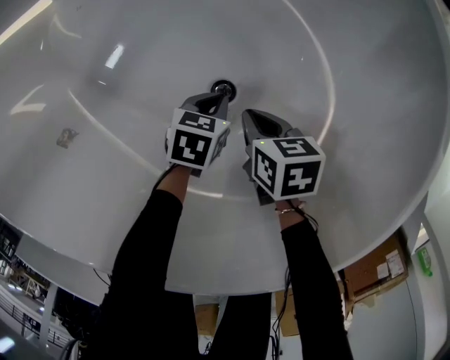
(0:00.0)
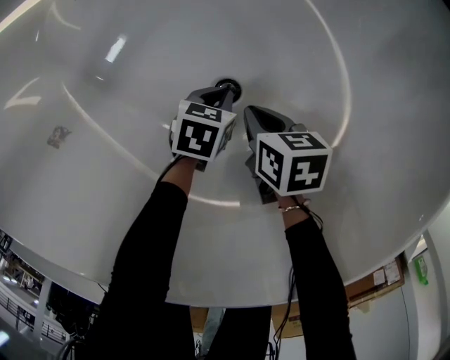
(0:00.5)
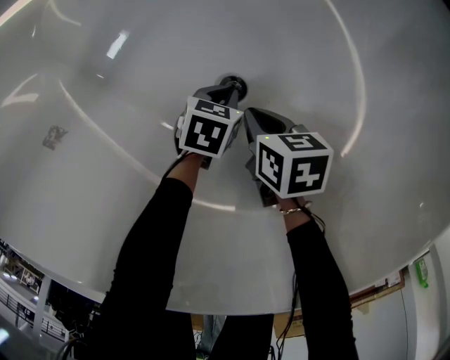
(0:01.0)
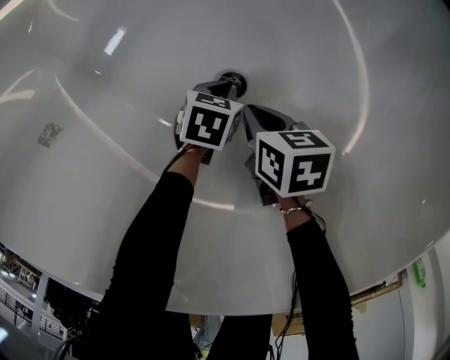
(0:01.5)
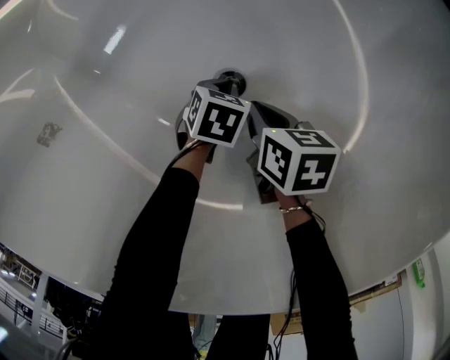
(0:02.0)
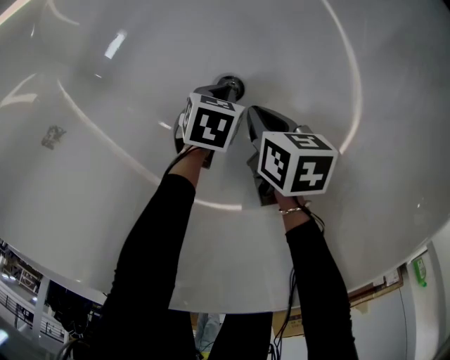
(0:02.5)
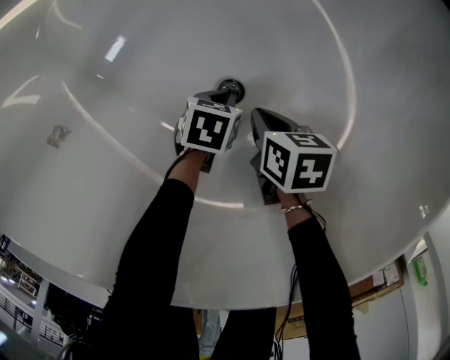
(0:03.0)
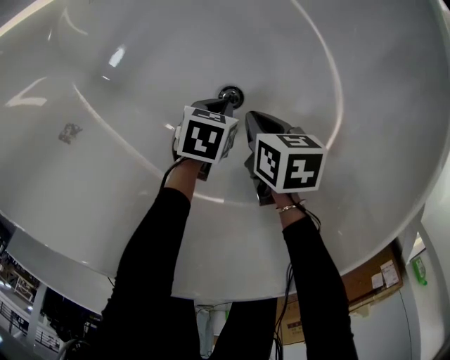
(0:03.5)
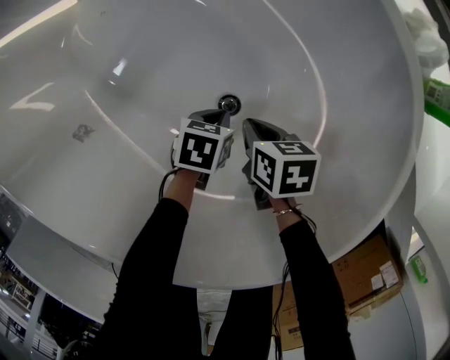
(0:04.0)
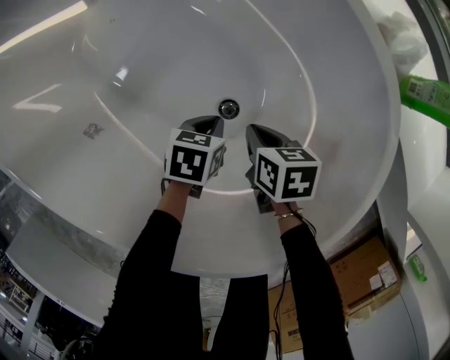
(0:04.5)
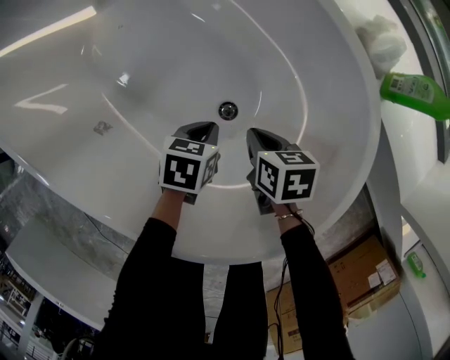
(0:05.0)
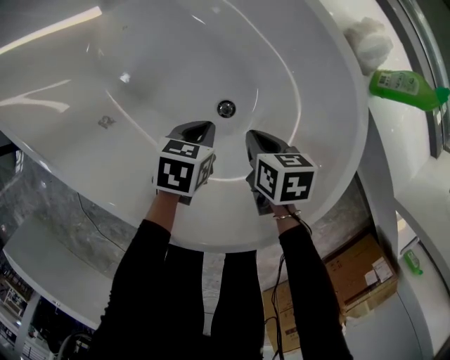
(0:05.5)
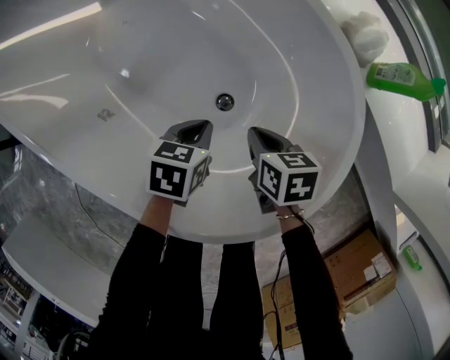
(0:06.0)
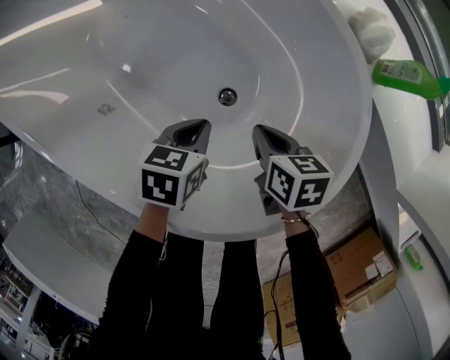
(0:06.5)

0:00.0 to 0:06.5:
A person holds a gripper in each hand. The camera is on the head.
0:00.0 to 0:02.0: The left gripper goes roughly 10 cm downward. The right gripper moves downward, about 5 cm.
0:02.0 to 0:04.5: The grippers both shift upward by roughly 15 cm.
0:04.5 to 0:06.5: Both grippers move upward, roughly 10 cm.

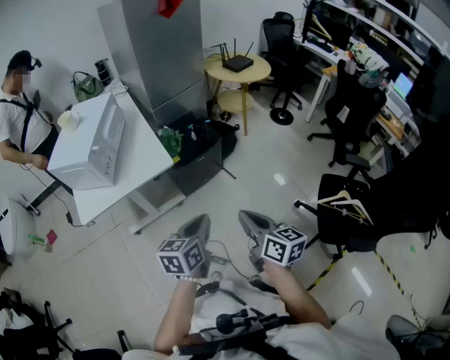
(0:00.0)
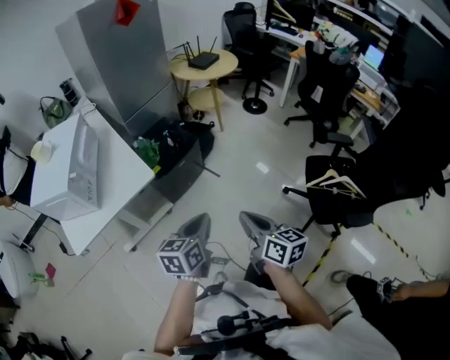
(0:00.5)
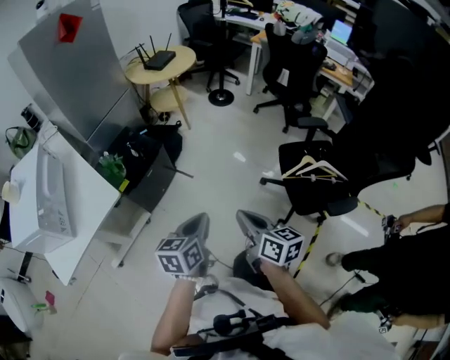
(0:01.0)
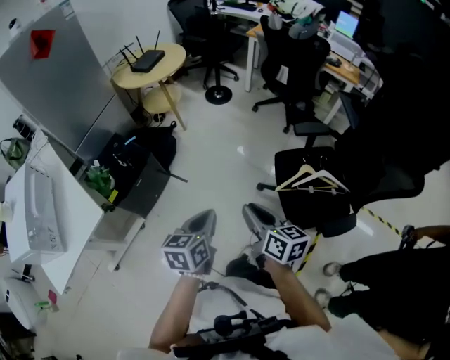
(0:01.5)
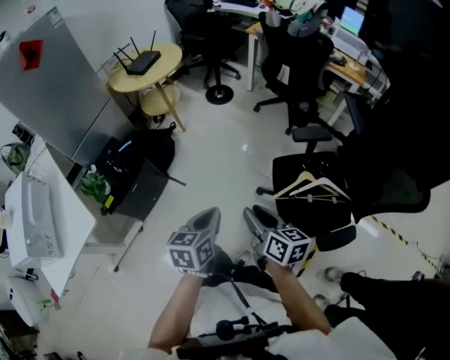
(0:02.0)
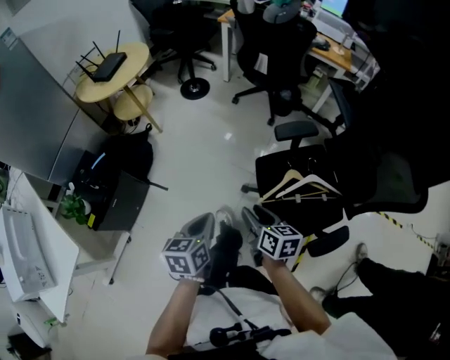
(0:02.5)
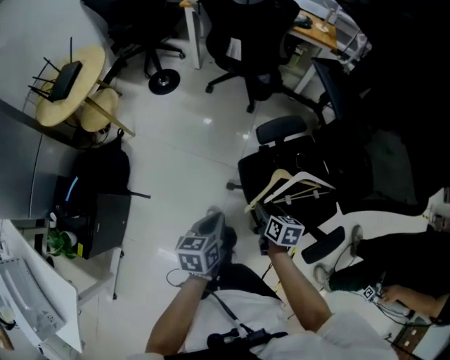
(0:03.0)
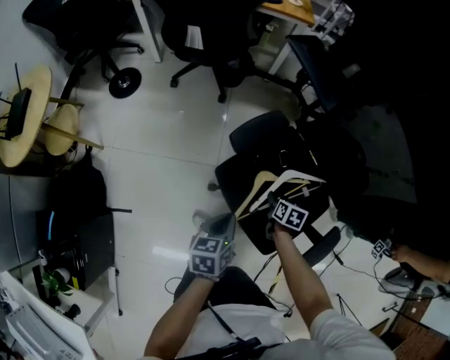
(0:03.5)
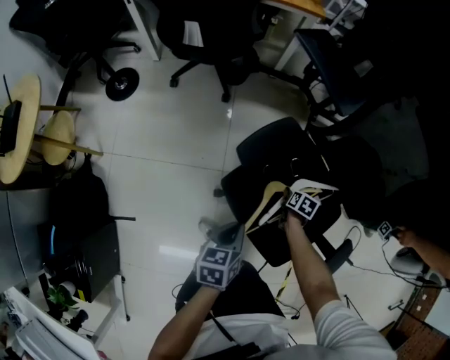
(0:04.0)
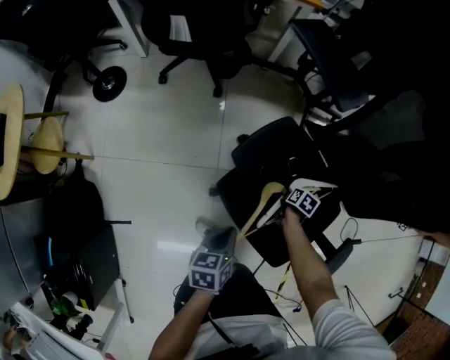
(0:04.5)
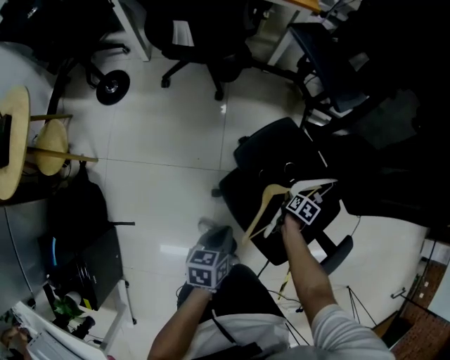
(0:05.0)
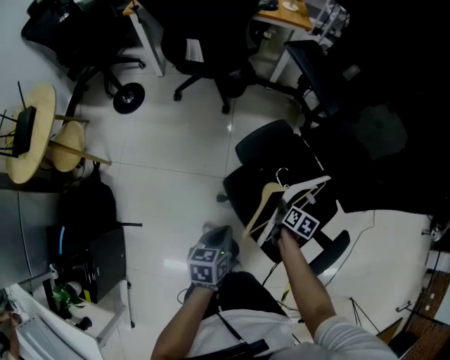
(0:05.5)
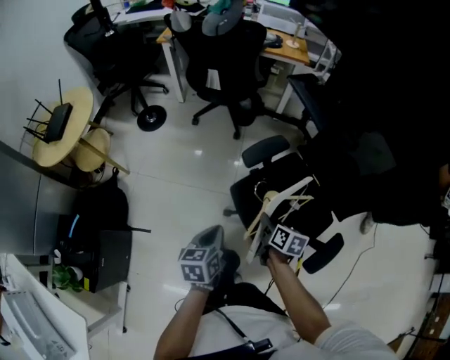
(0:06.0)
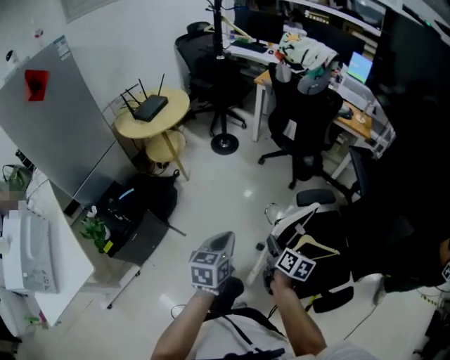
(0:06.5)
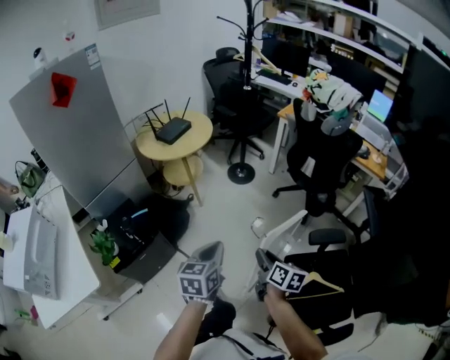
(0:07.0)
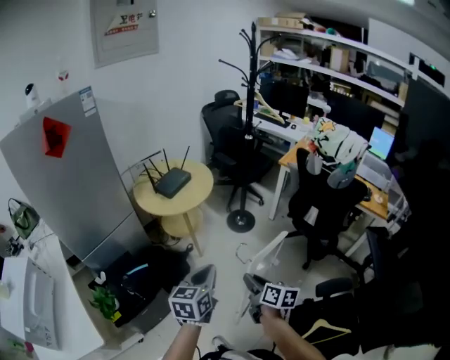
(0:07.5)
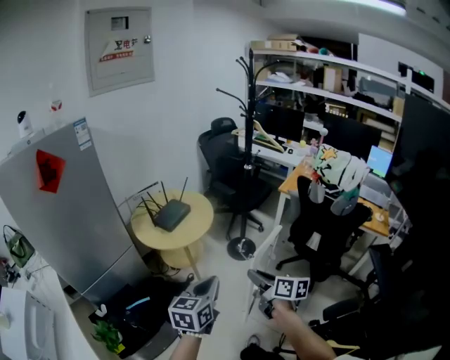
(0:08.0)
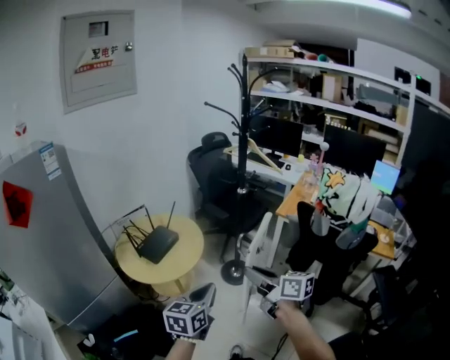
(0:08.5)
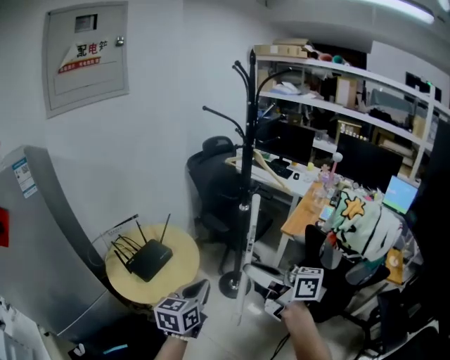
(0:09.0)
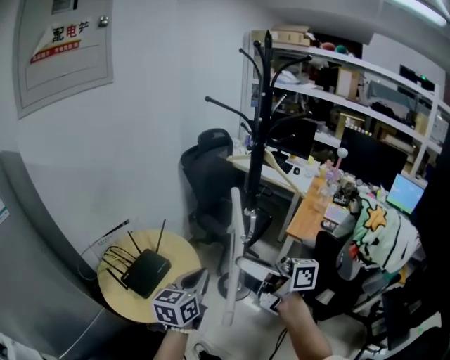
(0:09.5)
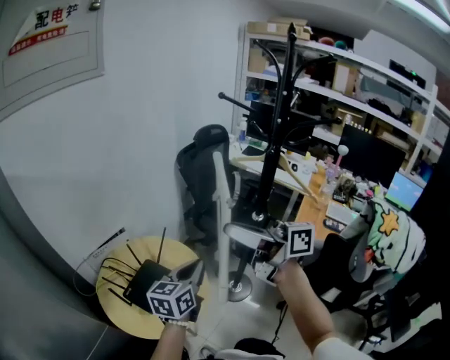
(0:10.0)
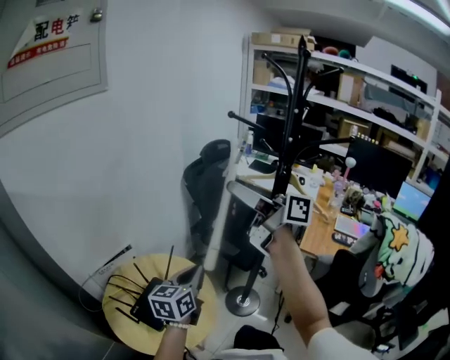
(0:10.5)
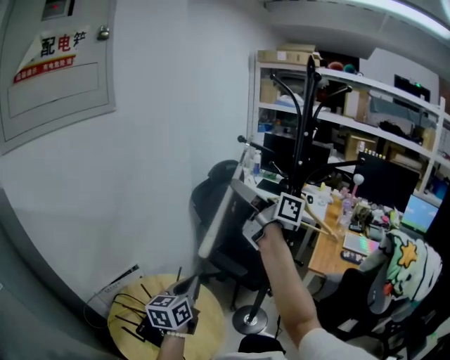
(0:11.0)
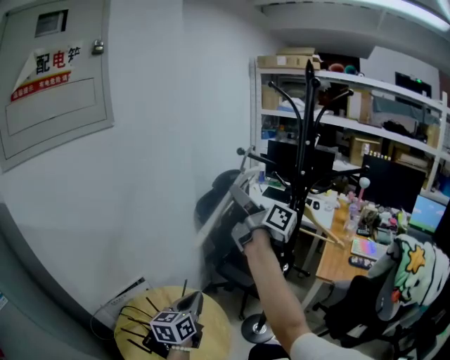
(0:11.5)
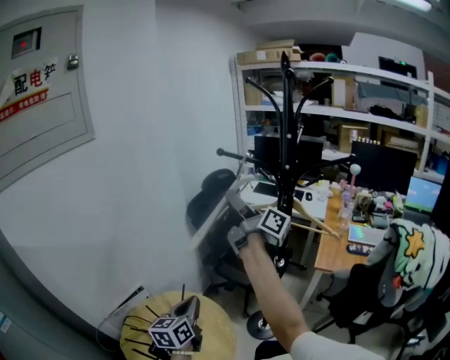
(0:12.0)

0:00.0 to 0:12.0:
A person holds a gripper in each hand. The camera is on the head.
0:00.0 to 0:02.0: Both grippers move to the right and forward, roughly 40 cm. The left gripper changes its angle by some 30 degrees; the right gripper rotates approximately 30 degrees, and opens its fingers.
0:02.0 to 0:04.0: The left gripper moves roughly 50 cm, and turns by roughly 40 degrees. Meanwhile the right gripper changes place by about 70 cm, and tips its fingers downward by roughly 50 degrees.
0:04.0 to 0:06.0: The right gripper moves upward, about 25 cm, turns by roughly 30 degrees, and closes its fingers. The left gripper ends up some 20 cm from where it was.
0:06.0 to 0:08.0: Both grippers are carried approximately 50 cm. The left gripper changes its angle by approximately 30 degrees; the right gripper turns by approximately 50 degrees.
0:08.0 to 0:10.0: The pair of grippers is taken forward, about 50 cm. The right gripper goes some 25 cm upward, and points its fingers roughly 30 degrees further upward.
0:10.0 to 0:12.0: The right gripper goes approximately 30 cm forward, and rotates approximately 40 degrees. The left gripper moves forward and to the left, approximately 15 cm.

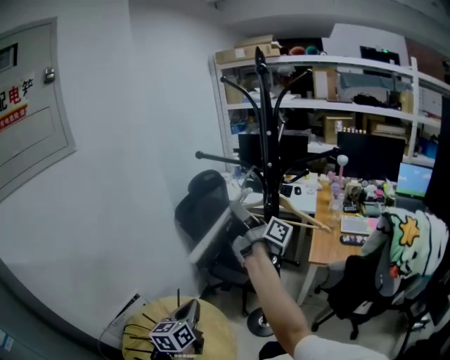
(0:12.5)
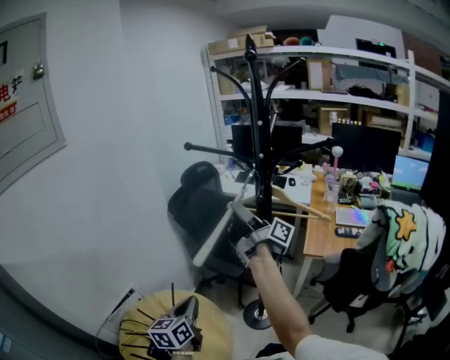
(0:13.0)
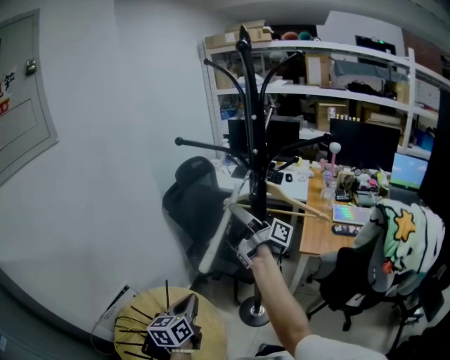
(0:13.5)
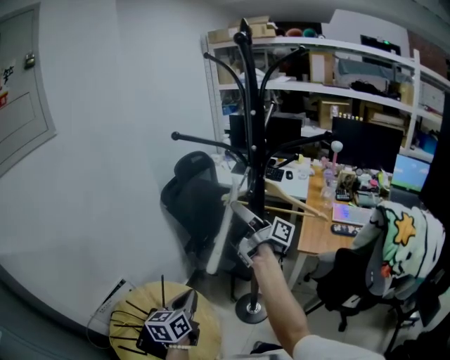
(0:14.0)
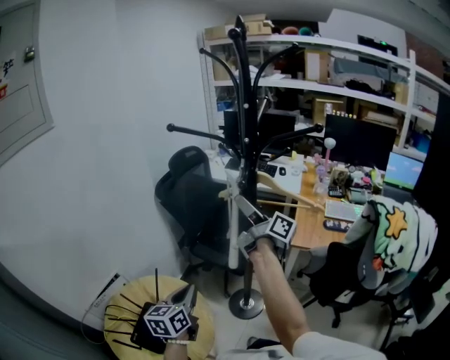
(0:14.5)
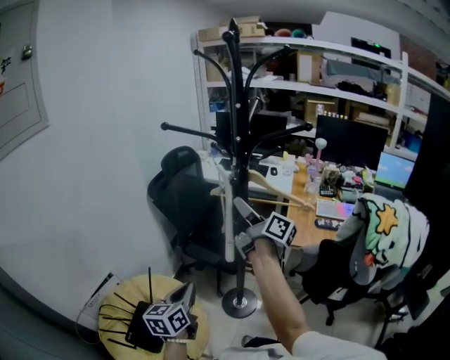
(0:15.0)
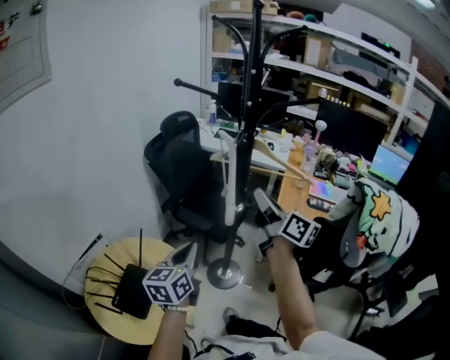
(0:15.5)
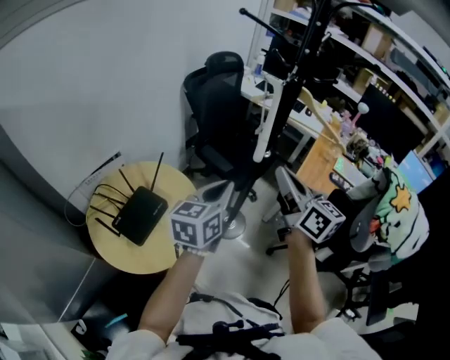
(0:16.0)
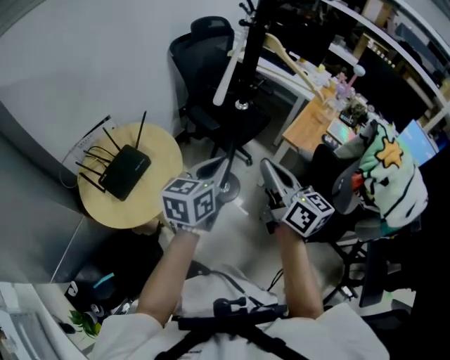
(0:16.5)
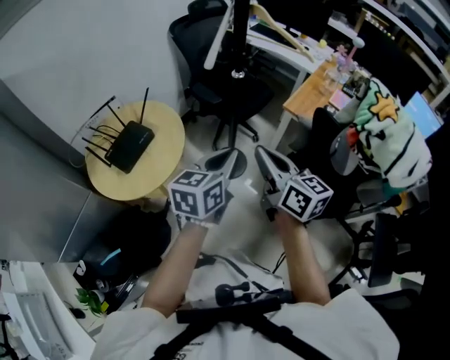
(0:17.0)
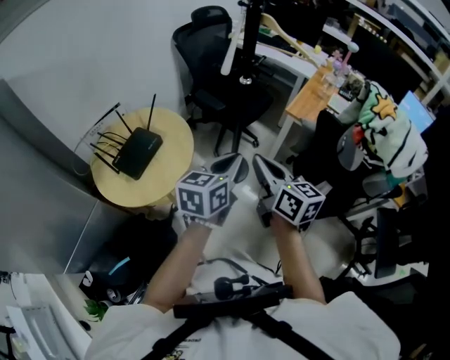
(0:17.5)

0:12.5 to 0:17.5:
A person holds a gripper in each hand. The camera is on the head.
0:12.5 to 0:15.0: The right gripper travels to the right and downward by approximately 10 cm, and changes its angle by roughly 20 degrees; the left gripper heads to the right, covering roughly 10 cm.
0:15.0 to 0:17.5: The left gripper shifts some 30 cm backward and to the right. The right gripper is displaced backward by approximately 40 cm, changes its angle by about 40 degrees, and closes up.

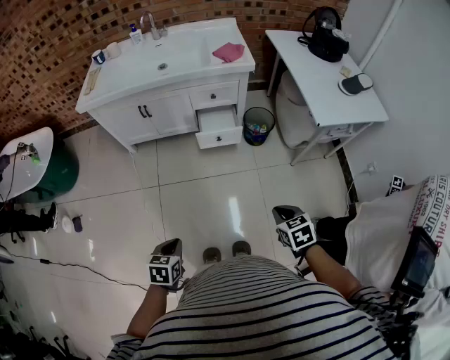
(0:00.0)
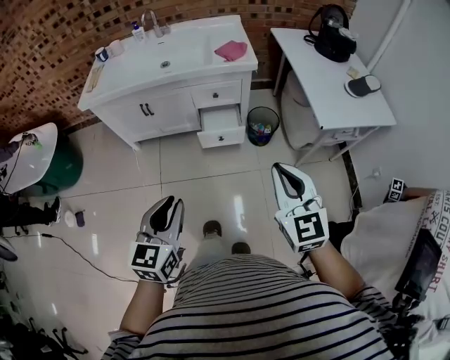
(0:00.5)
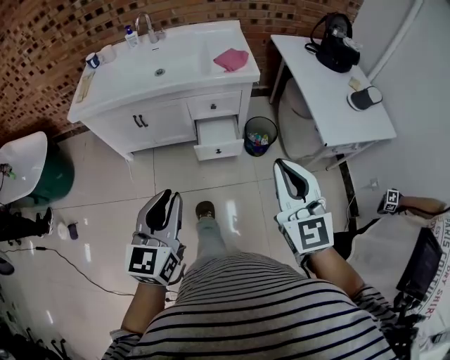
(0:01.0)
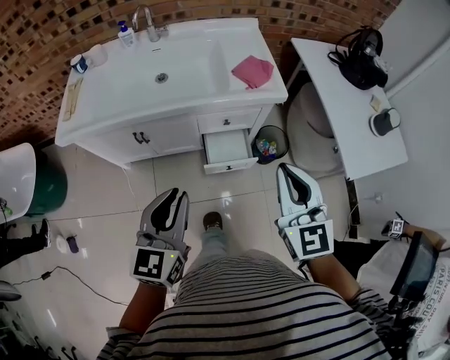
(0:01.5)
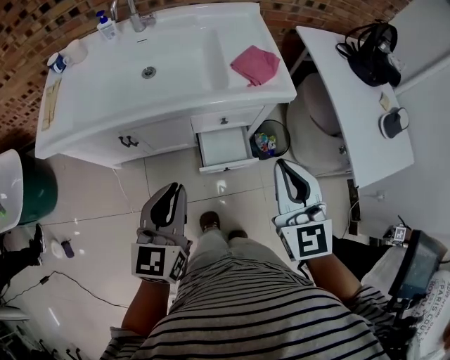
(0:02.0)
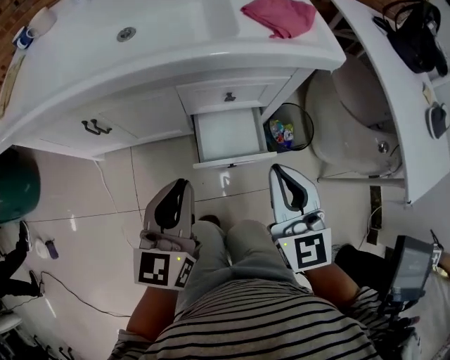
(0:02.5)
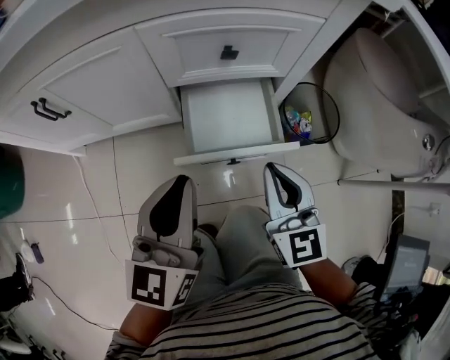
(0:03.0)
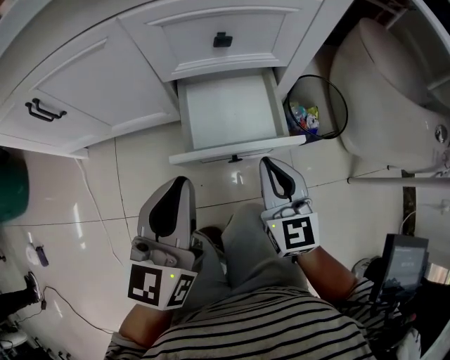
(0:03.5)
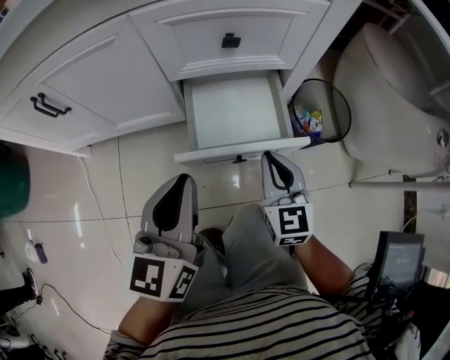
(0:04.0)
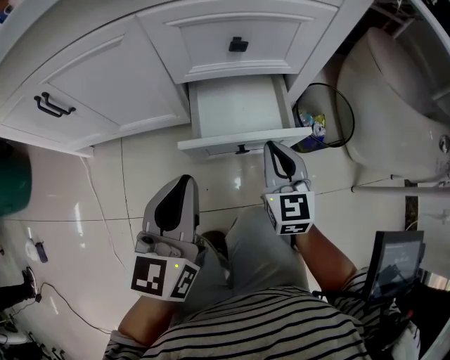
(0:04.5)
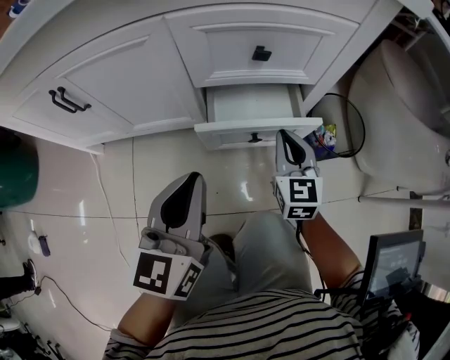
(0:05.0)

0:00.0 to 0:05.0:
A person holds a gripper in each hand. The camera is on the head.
0:00.0 to 0:02.5: The pair of grippers is taken forward, roughly 50 cm. The left gripper points its fingers some 40 degrees further upward; the right gripper points its fingers about 40 degrees further upward.
0:02.5 to 0:05.0: The right gripper moves downward, approximately 35 cm. Meanwhile the left gripper moves downward, approximately 20 cm.
